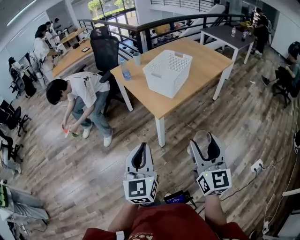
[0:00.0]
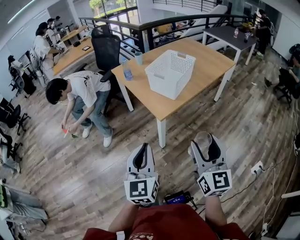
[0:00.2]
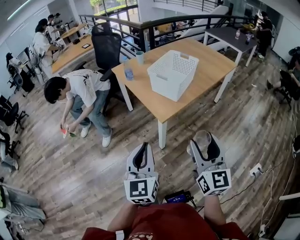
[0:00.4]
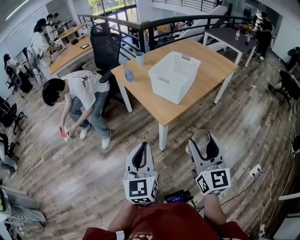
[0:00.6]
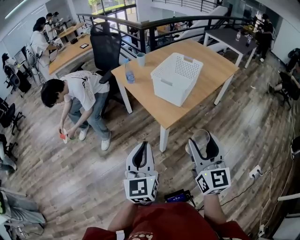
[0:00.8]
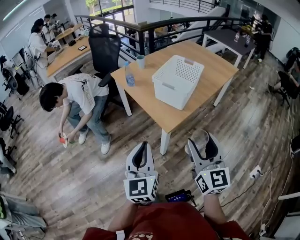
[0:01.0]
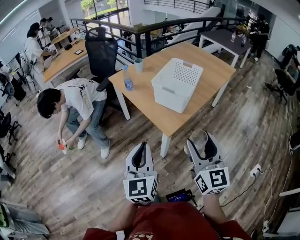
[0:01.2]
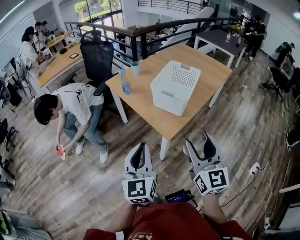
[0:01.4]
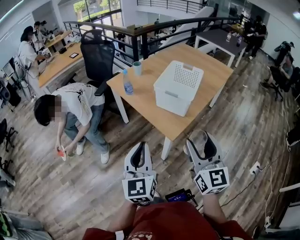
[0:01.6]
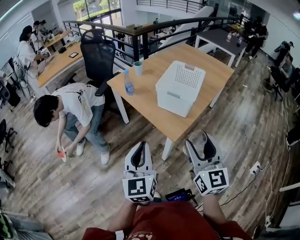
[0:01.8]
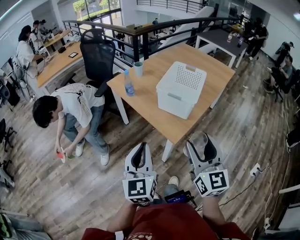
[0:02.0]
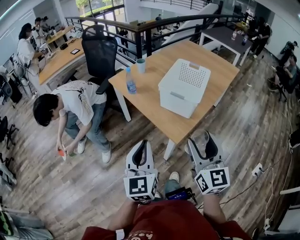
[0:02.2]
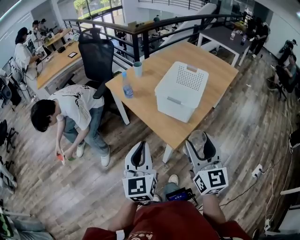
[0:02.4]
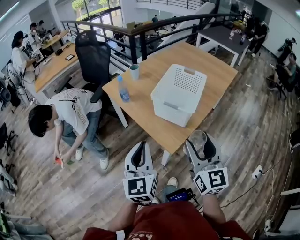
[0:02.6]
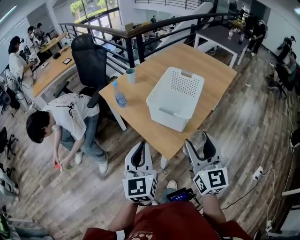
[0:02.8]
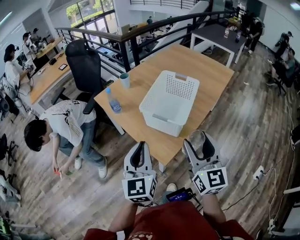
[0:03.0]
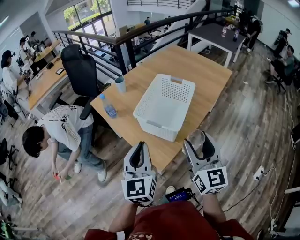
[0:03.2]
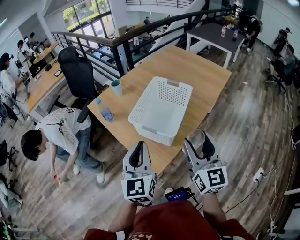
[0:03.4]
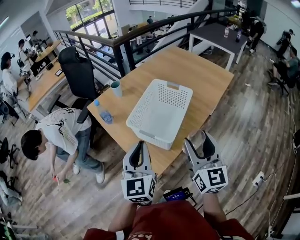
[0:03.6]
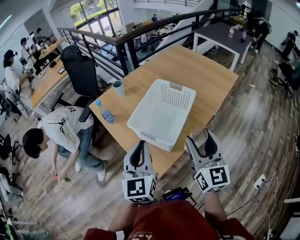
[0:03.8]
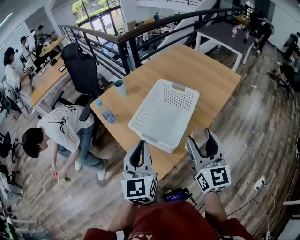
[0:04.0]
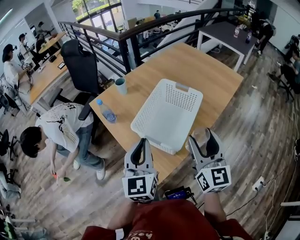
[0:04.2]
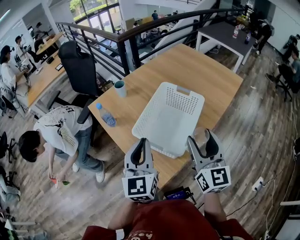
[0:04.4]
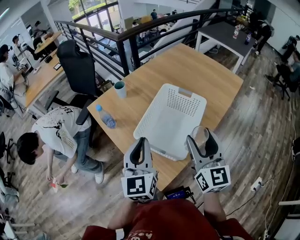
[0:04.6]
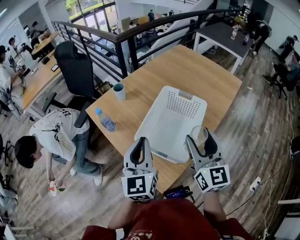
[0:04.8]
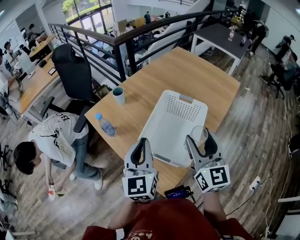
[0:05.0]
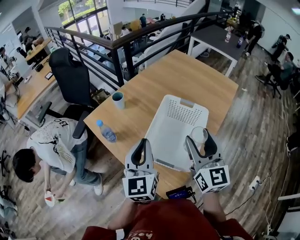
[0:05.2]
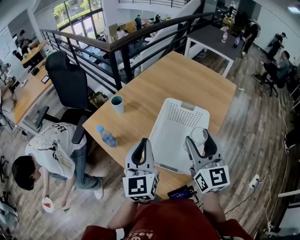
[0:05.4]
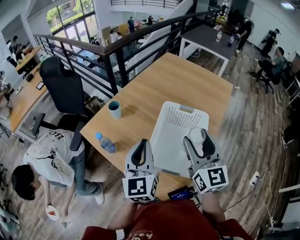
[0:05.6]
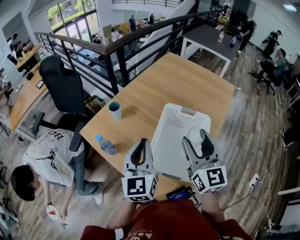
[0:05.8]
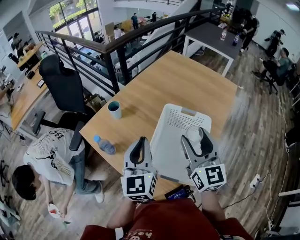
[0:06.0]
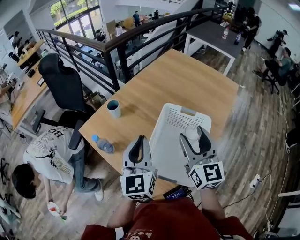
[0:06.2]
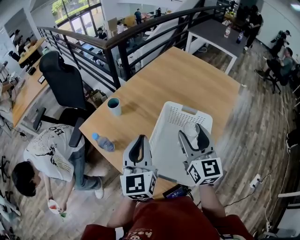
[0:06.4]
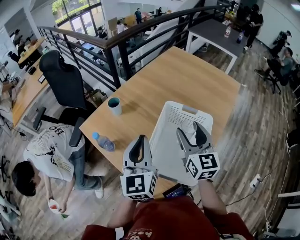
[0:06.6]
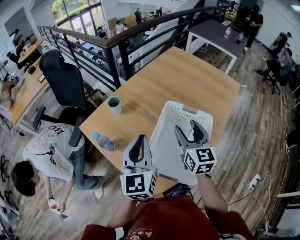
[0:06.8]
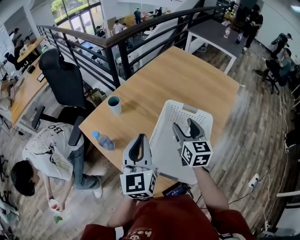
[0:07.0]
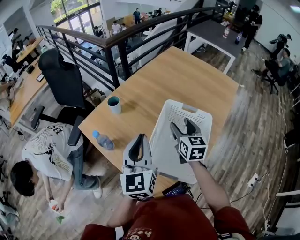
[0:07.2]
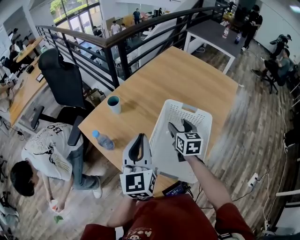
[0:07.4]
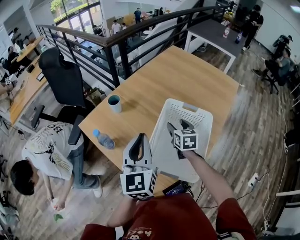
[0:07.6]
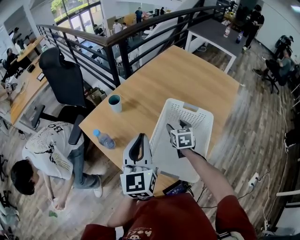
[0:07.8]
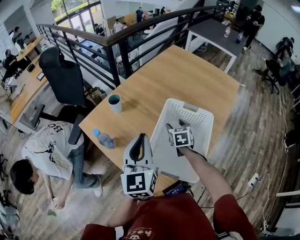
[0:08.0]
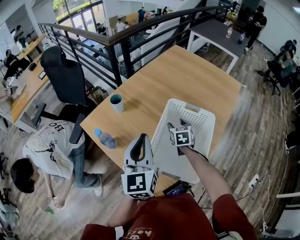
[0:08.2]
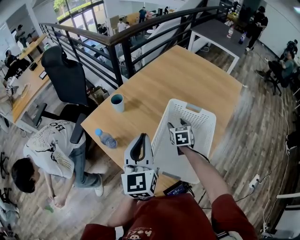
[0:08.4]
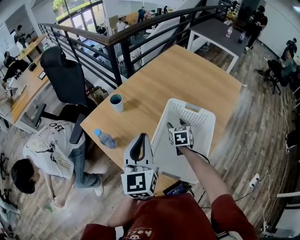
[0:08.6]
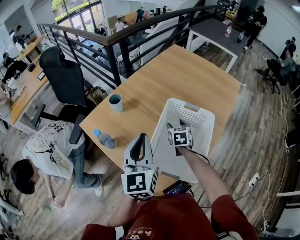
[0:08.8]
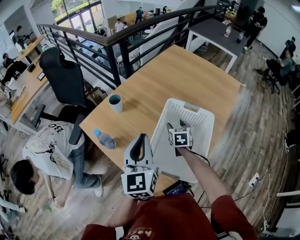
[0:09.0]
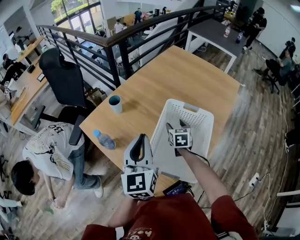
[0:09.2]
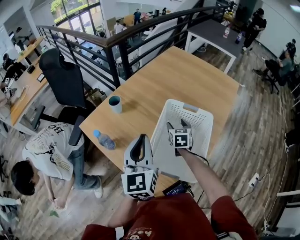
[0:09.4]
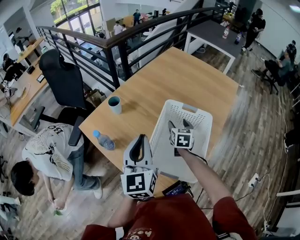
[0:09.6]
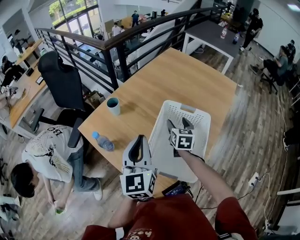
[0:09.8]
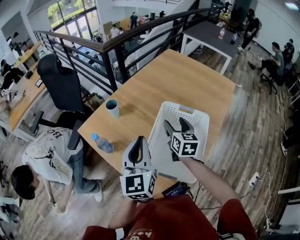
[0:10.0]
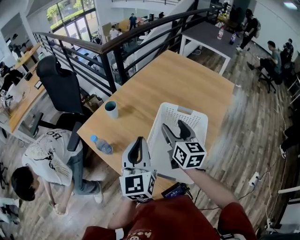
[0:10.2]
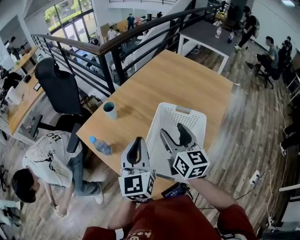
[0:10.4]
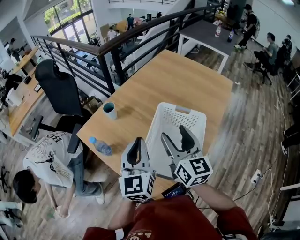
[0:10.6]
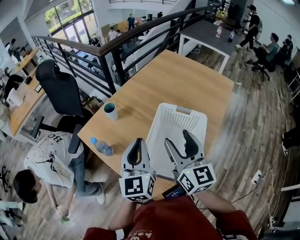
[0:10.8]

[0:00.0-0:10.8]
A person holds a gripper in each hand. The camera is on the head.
0:00.0 to 0:01.6: Both grippers move forward and to the left, roughly 20 cm.
0:01.6 to 0:03.0: Both grippers move forward and to the right, roughly 15 cm.
0:03.0 to 0:04.6: Both grippers travel together forward, roughly 15 cm.
0:04.6 to 0:06.2: Both grippers travel together forward, roughly 15 cm.
0:06.2 to 0:07.8: The right gripper is displaced downward and forward by approximately 25 cm, and tilts its fingers about 40 degrees downward.
0:07.8 to 0:09.2: The grippers stay close to where they were, moving slightly.
0:09.2 to 0:10.8: The right gripper heads upward and backward, covering roughly 30 cm, and tips its fingers upward by about 40 degrees.

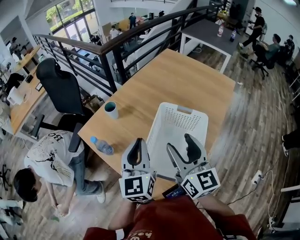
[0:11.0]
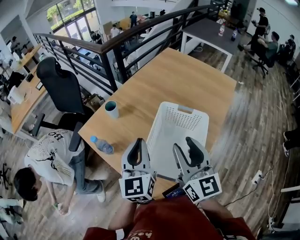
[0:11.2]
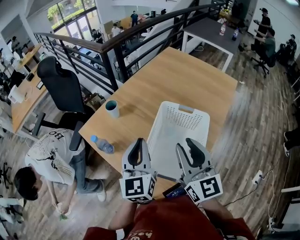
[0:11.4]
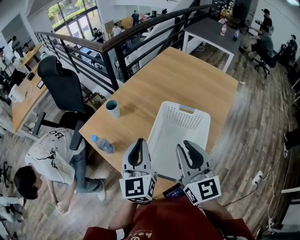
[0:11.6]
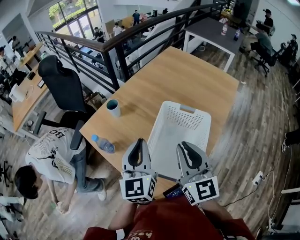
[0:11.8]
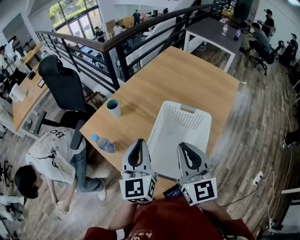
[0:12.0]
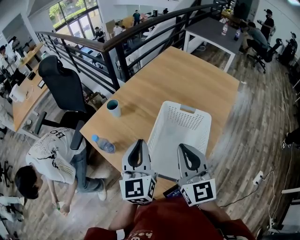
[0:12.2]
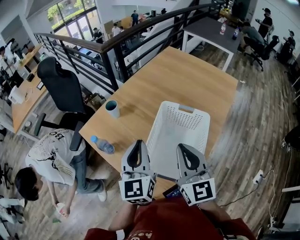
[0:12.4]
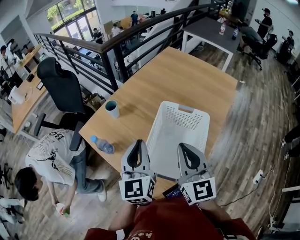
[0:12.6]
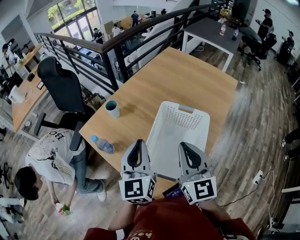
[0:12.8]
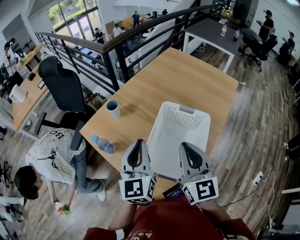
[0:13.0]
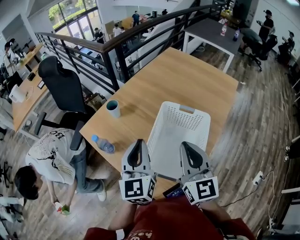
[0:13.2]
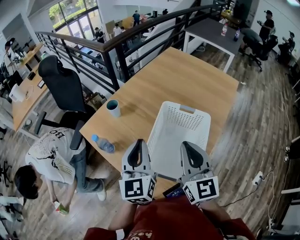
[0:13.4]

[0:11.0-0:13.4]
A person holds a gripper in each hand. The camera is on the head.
0:11.0 to 0:12.2: The right gripper closes.
0:12.2 to 0:13.4: The grippers stay close to where they were, moving slightly.

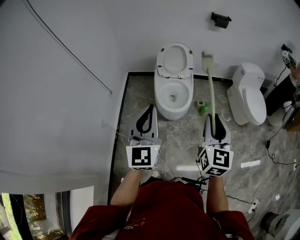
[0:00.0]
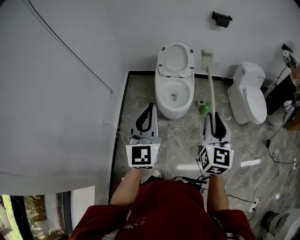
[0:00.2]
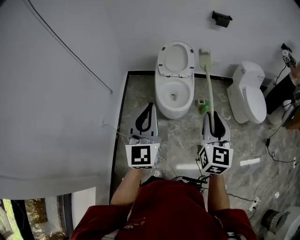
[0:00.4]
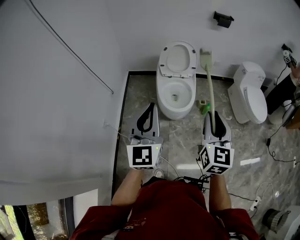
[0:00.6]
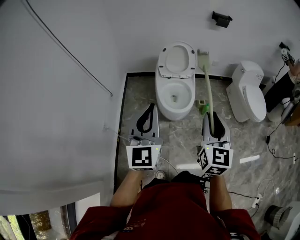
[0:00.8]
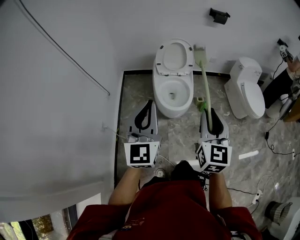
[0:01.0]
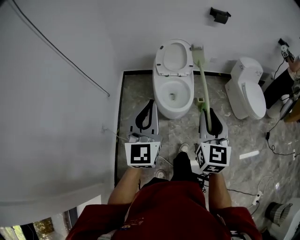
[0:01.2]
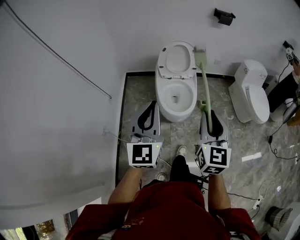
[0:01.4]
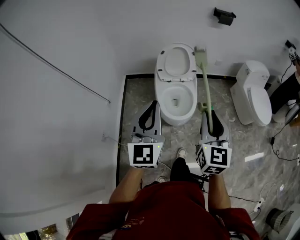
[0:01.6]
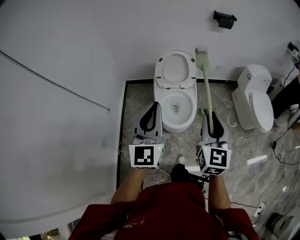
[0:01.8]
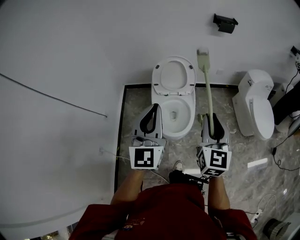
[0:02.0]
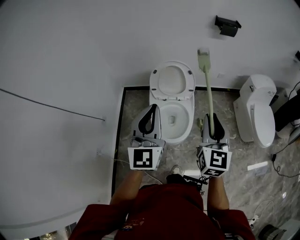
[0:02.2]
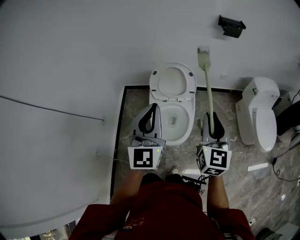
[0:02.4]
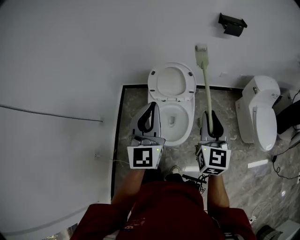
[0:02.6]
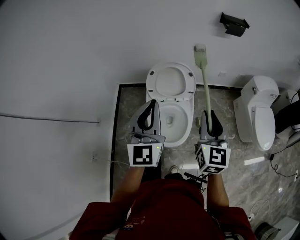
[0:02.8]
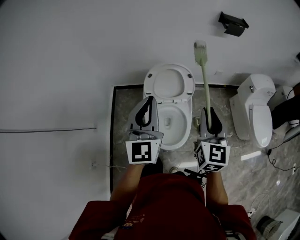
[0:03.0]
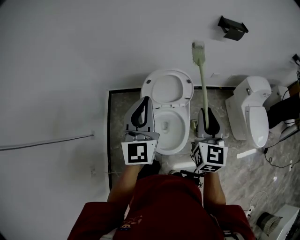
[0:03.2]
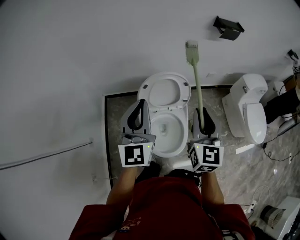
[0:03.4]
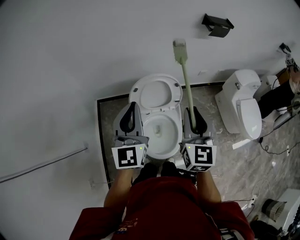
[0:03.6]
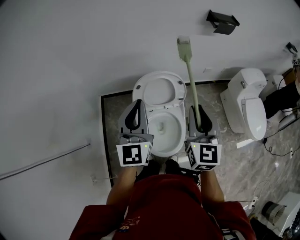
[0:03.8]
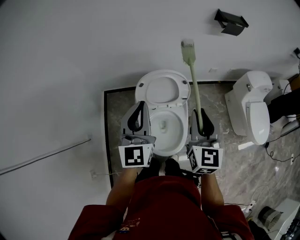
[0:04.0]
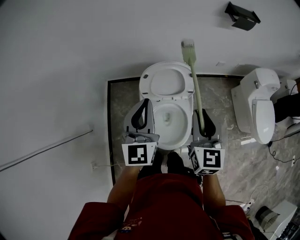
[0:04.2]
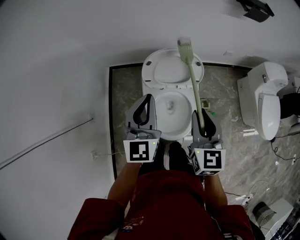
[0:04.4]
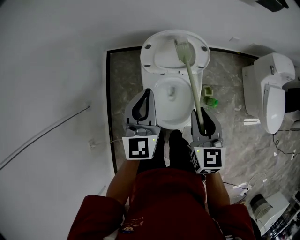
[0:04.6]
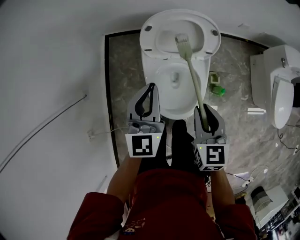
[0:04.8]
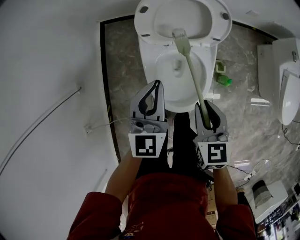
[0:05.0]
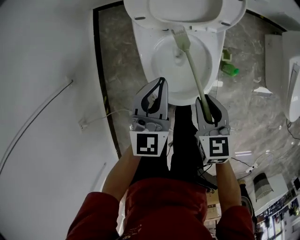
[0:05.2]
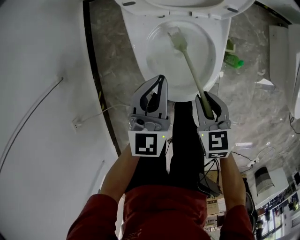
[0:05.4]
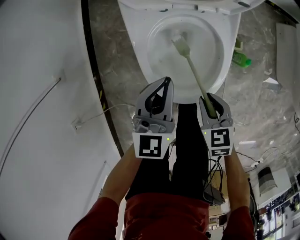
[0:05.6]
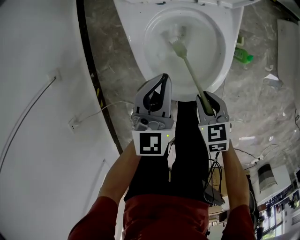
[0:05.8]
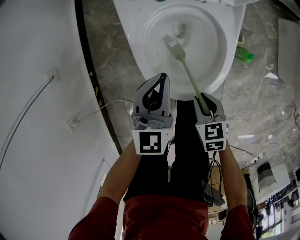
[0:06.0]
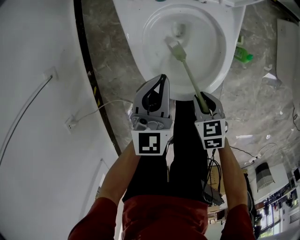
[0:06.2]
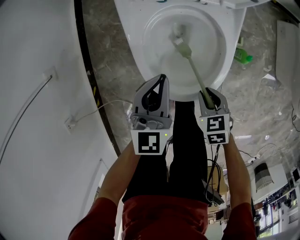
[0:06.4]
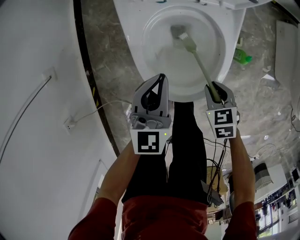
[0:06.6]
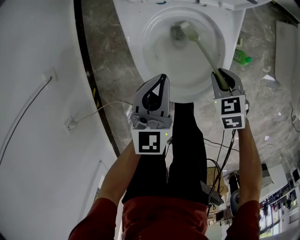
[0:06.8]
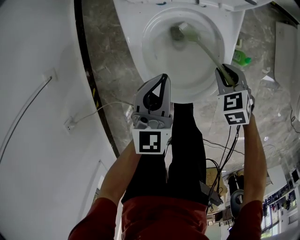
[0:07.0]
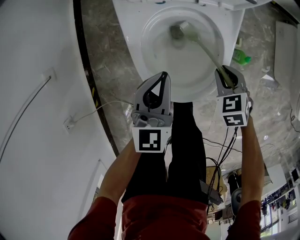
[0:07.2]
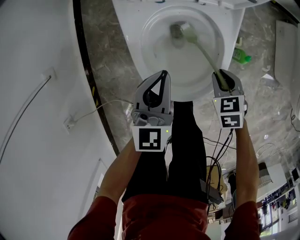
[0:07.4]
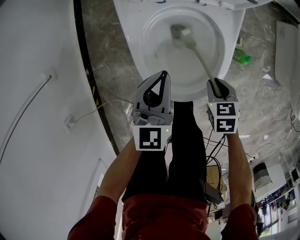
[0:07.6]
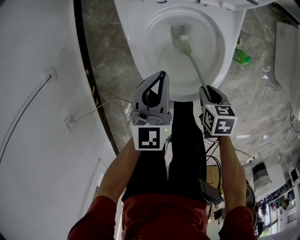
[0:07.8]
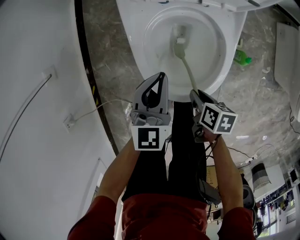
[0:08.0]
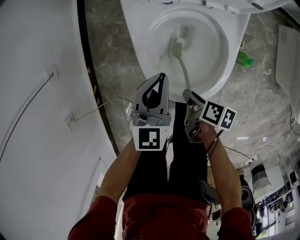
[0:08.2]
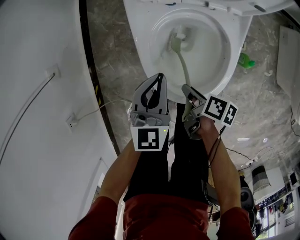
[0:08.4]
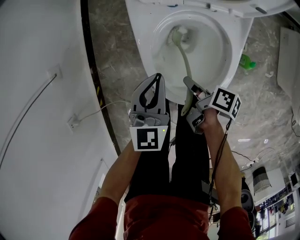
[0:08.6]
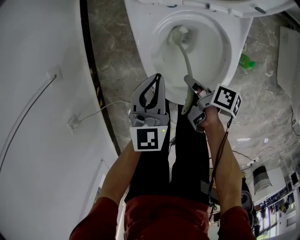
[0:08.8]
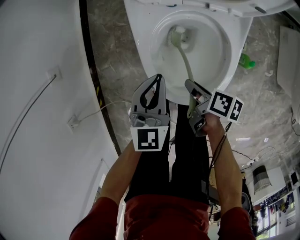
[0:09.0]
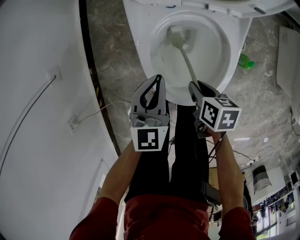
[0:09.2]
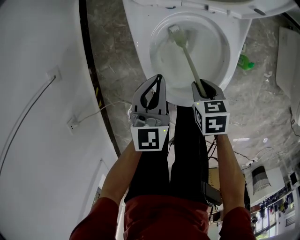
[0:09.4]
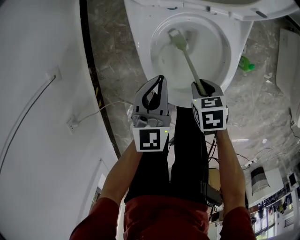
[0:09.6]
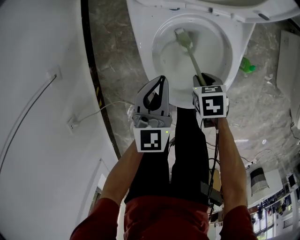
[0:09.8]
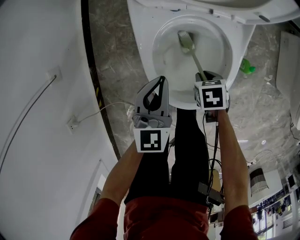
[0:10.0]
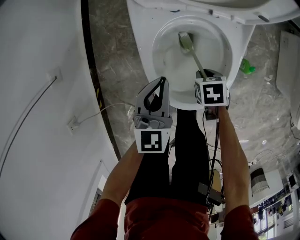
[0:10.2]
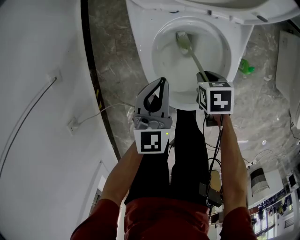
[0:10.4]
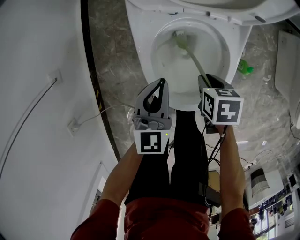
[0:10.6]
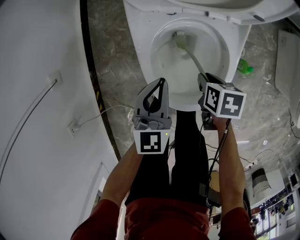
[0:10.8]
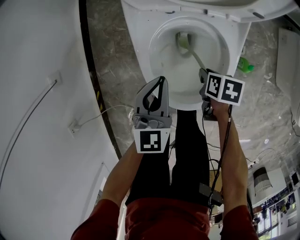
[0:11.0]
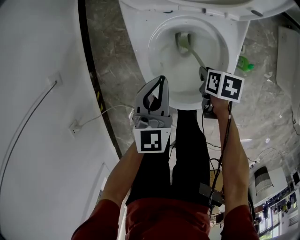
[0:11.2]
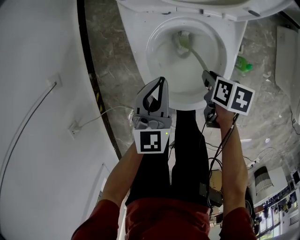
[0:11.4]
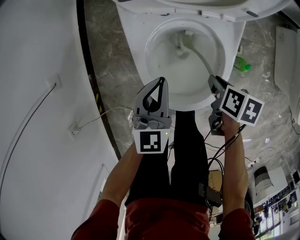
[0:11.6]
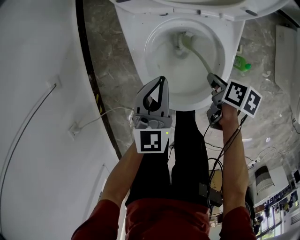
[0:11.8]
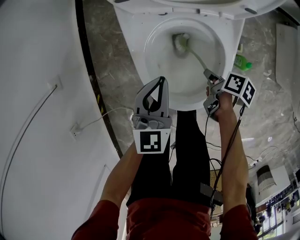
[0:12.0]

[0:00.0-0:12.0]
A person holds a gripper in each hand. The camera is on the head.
0:00.0 to 0:01.6: The right gripper is displaced forward and to the left by roughly 15 cm, while the left gripper is displaced forward by about 15 cm.
0:01.6 to 0:03.0: Both grippers travel together forward, approximately 30 cm.
0:03.0 to 0:04.4: The grippers both shift downward and forward by some 10 cm.
0:04.4 to 0:06.0: Both grippers move downward, about 40 cm. The right gripper angles its fingers downward, by approximately 40 degrees.
0:06.0 to 0:07.6: The right gripper travels to the right and forward by roughly 10 cm.
0:07.6 to 0:09.0: The right gripper shifts some 10 cm to the left, and rotates around the line of its fingers by approximately 60 degrees, clockwise from behind.
0:09.0 to 0:10.4: The right gripper shifts by roughly 5 cm, and twists about 40 degrees counterclockwise, seen from behind.
0:10.4 to 0:12.0: The right gripper swings up and down, some 5 cm each way, with 3 reversals, and rotates around the line of its fingers by some 50 degrees, clockwise from behind.
